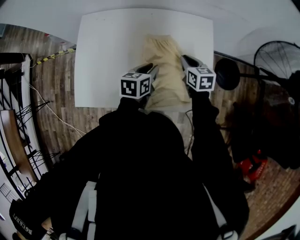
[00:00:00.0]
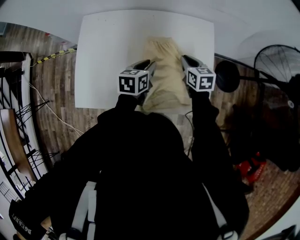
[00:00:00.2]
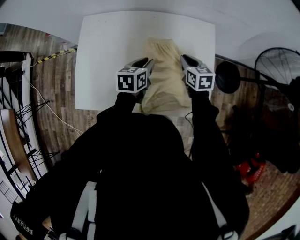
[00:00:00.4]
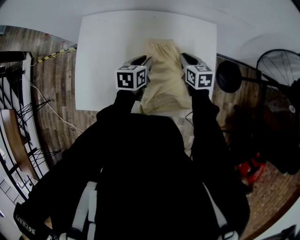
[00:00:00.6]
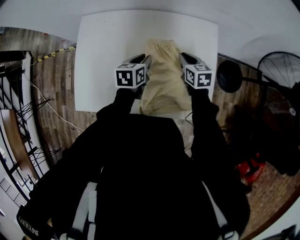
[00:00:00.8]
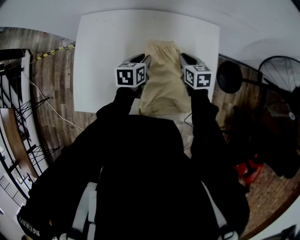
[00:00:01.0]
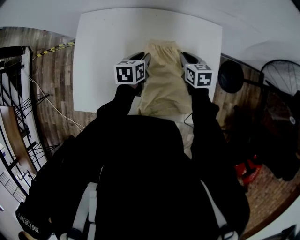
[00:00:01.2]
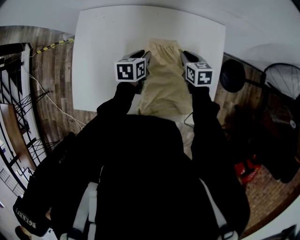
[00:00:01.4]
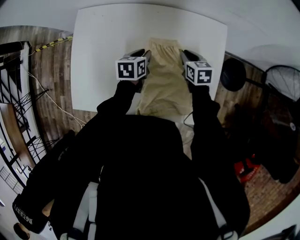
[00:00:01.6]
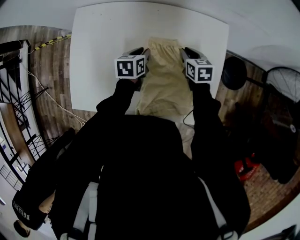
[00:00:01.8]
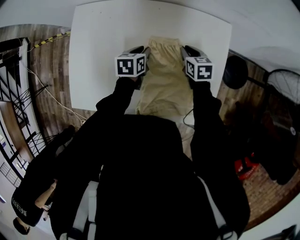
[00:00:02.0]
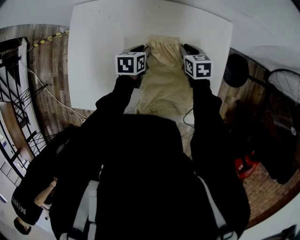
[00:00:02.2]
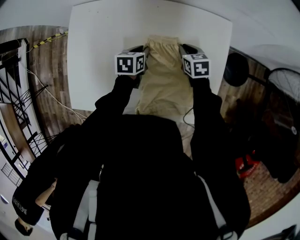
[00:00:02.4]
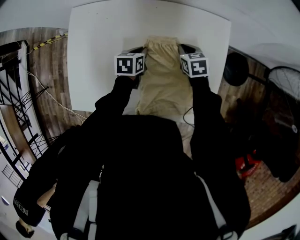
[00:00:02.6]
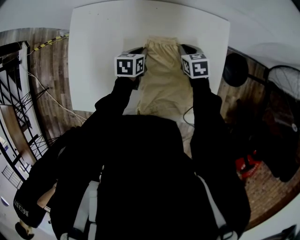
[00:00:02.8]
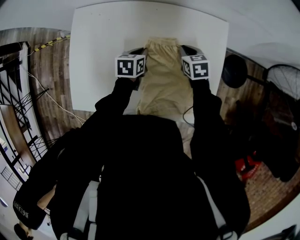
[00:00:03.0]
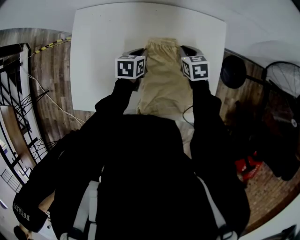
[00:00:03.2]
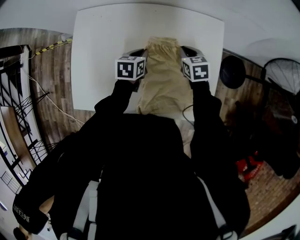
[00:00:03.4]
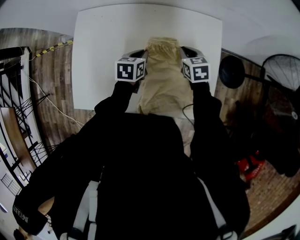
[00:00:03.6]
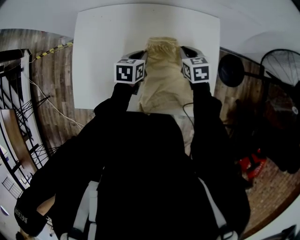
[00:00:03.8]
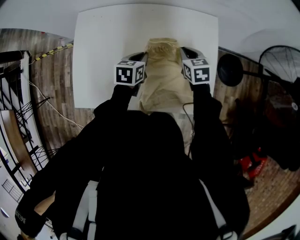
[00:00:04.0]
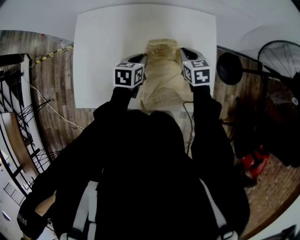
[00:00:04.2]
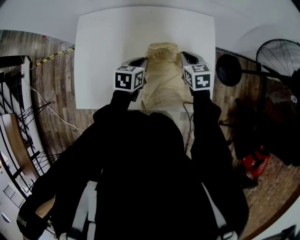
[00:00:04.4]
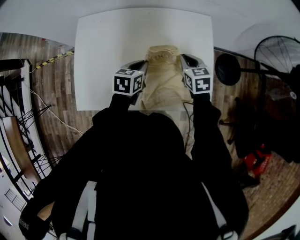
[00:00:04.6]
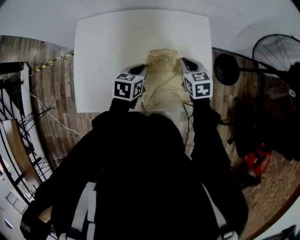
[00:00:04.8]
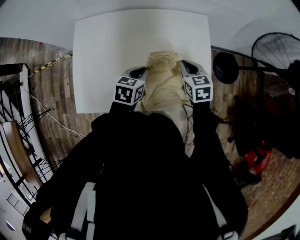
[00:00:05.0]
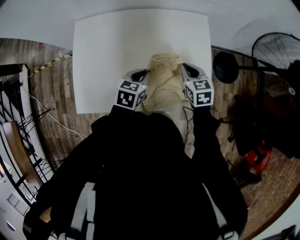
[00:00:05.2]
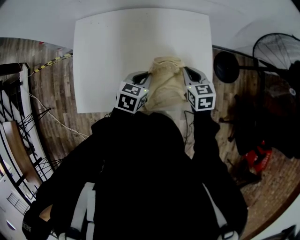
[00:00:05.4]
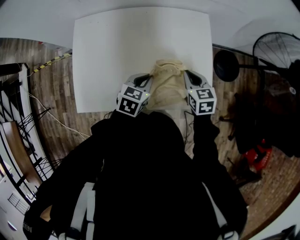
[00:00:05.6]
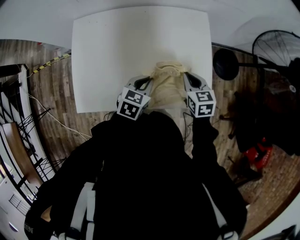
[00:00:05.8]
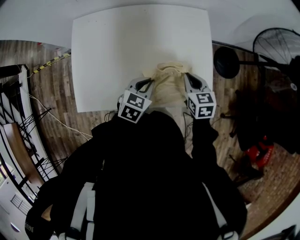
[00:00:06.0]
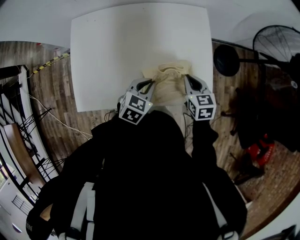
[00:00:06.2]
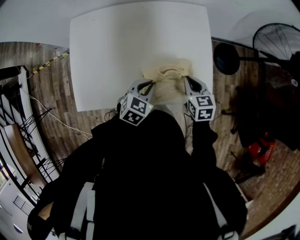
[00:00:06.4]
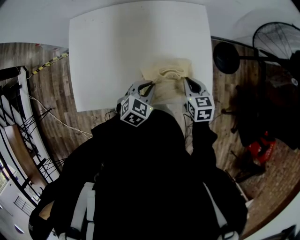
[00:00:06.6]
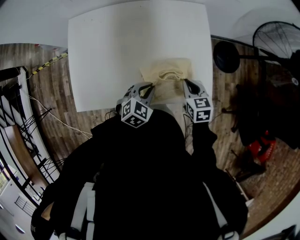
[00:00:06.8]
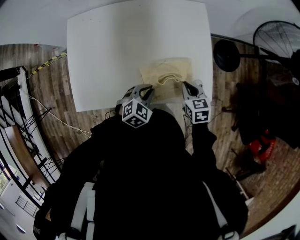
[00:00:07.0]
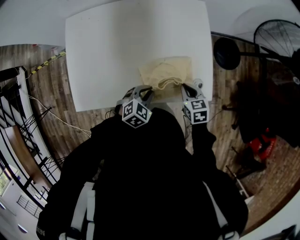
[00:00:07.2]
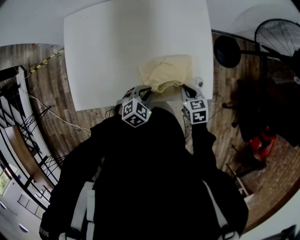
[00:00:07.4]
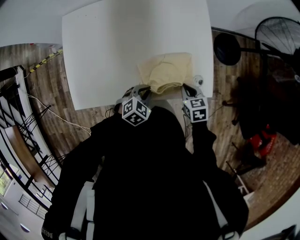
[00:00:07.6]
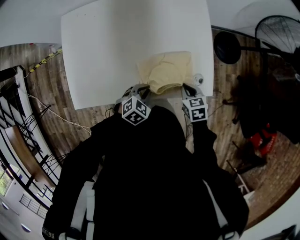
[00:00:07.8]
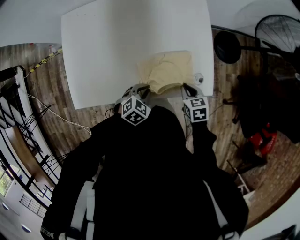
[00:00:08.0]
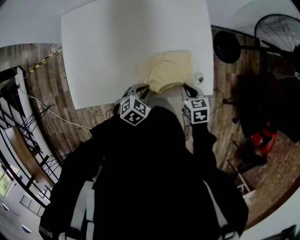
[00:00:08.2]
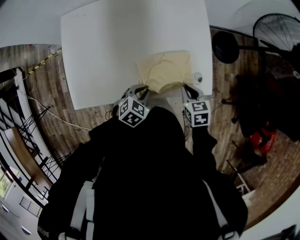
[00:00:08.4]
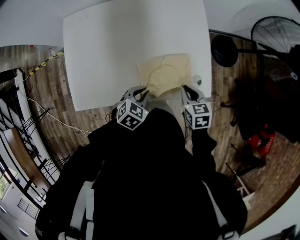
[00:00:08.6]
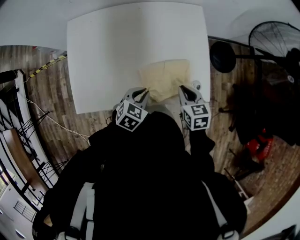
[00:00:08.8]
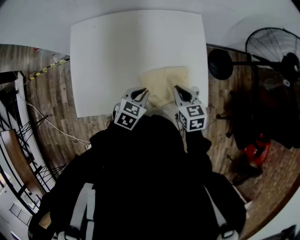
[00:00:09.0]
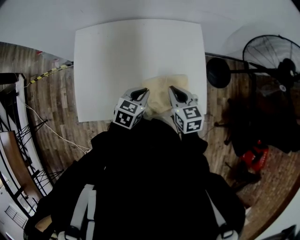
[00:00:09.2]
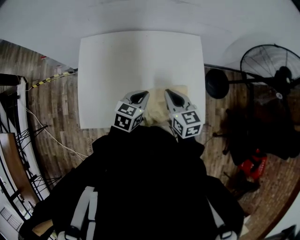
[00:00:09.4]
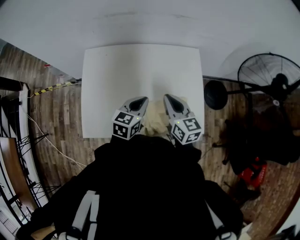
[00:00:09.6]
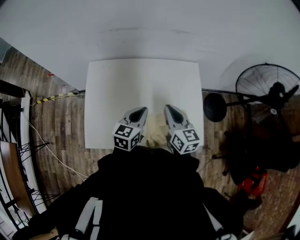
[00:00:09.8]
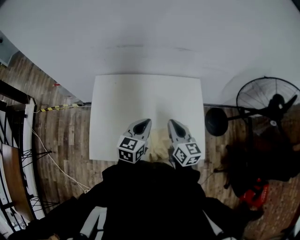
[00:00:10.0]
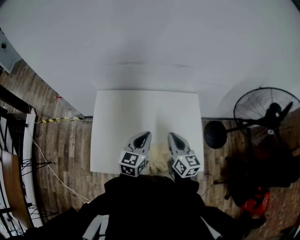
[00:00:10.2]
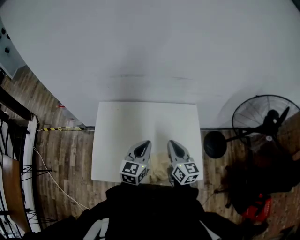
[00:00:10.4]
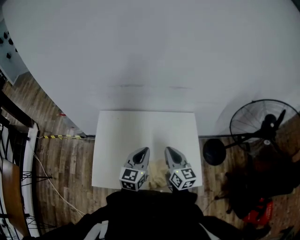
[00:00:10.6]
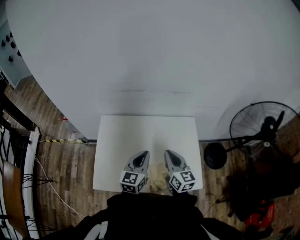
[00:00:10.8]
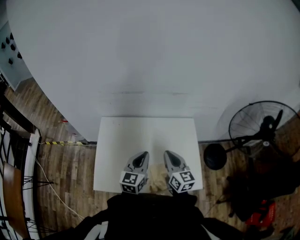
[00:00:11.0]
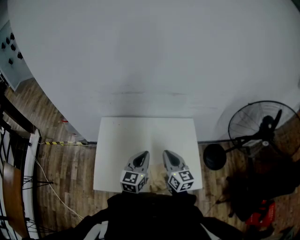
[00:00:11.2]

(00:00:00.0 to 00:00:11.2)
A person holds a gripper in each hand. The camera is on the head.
00:00:00.0 - 00:00:01.6: The left gripper heads forward, downward and to the left, covering about 15 cm; the right gripper goes about 10 cm forward and downward.
00:00:01.6 - 00:00:03.2: The grippers stay close to where they were, moving slightly.
00:00:03.2 - 00:00:04.8: Both grippers move backward and upward, approximately 15 cm.
00:00:04.8 - 00:00:06.4: The grippers both shift backward and to the right by about 10 cm. The left gripper swivels some 30 degrees.
00:00:06.4 - 00:00:08.0: The left gripper moves downward and backward, approximately 10 cm. Meanwhile the right gripper travels backward and downward by about 10 cm.
00:00:08.0 - 00:00:09.6: The right gripper moves upward, to the left and forward, roughly 30 cm, and angles its fingers upward, by roughly 40 degrees, while the left gripper goes approximately 25 cm upward, forward and to the left, and changes its angle by some 40 degrees.
00:00:09.6 - 00:00:11.2: The right gripper goes approximately 10 cm upward, while the left gripper moves upward, roughly 10 cm, and turns by roughly 20 degrees.

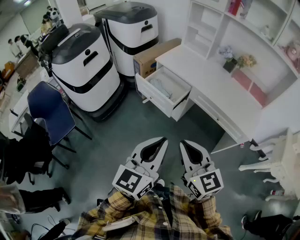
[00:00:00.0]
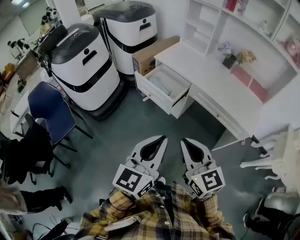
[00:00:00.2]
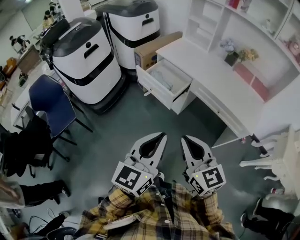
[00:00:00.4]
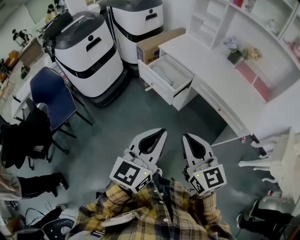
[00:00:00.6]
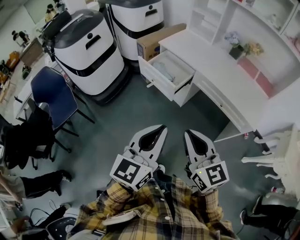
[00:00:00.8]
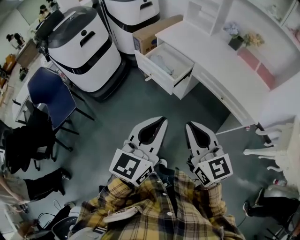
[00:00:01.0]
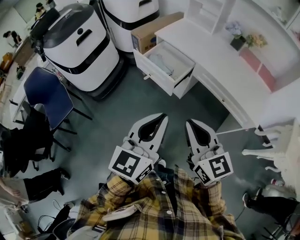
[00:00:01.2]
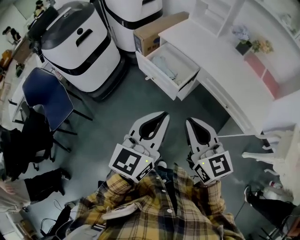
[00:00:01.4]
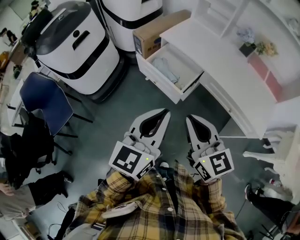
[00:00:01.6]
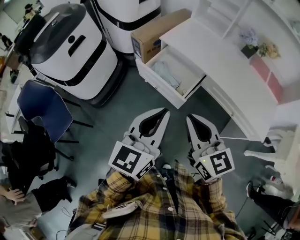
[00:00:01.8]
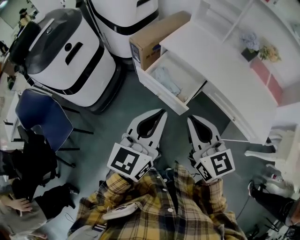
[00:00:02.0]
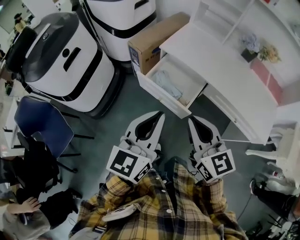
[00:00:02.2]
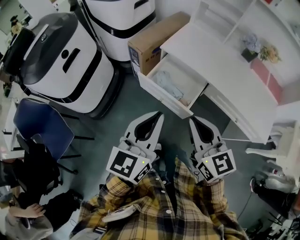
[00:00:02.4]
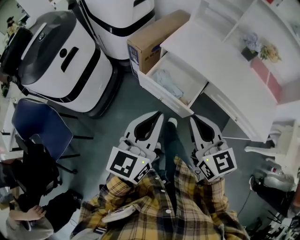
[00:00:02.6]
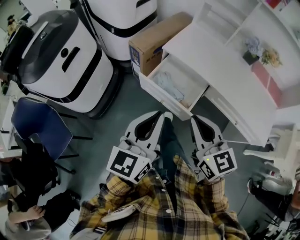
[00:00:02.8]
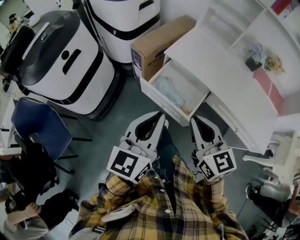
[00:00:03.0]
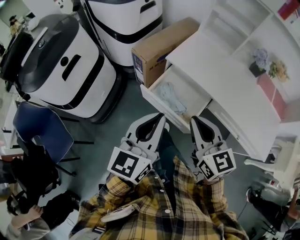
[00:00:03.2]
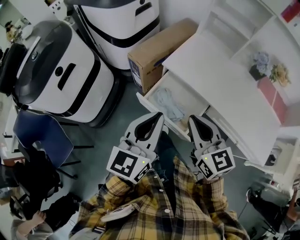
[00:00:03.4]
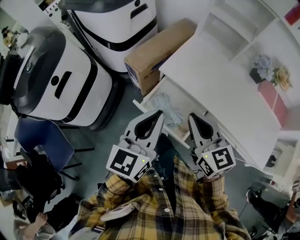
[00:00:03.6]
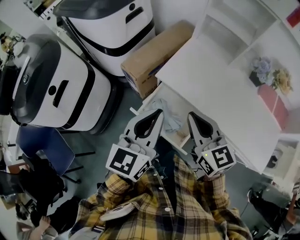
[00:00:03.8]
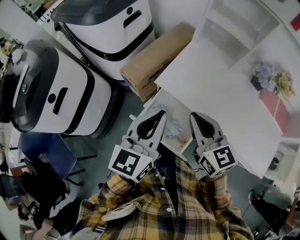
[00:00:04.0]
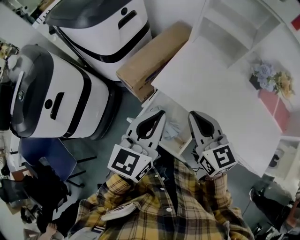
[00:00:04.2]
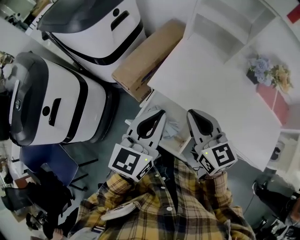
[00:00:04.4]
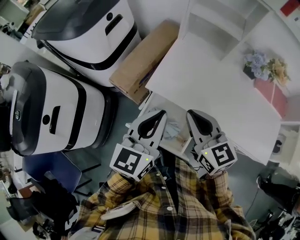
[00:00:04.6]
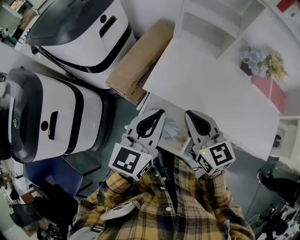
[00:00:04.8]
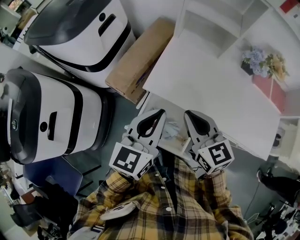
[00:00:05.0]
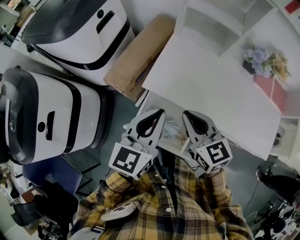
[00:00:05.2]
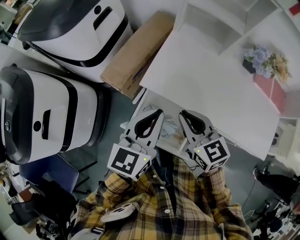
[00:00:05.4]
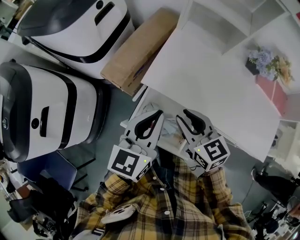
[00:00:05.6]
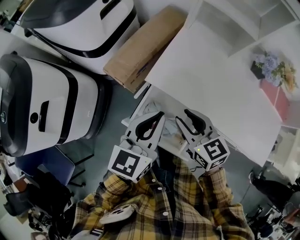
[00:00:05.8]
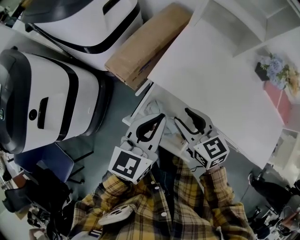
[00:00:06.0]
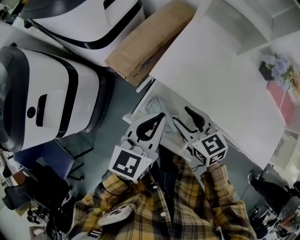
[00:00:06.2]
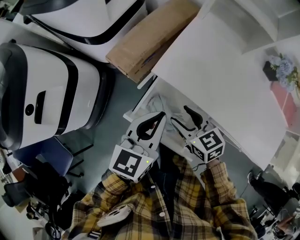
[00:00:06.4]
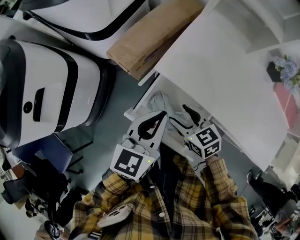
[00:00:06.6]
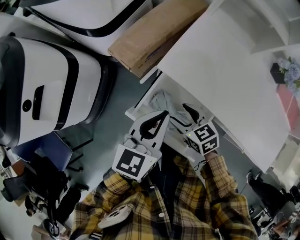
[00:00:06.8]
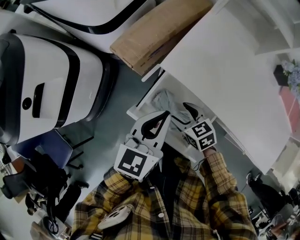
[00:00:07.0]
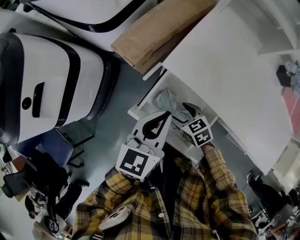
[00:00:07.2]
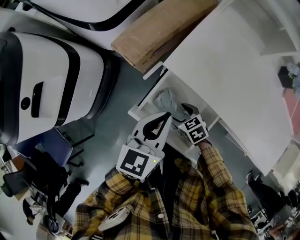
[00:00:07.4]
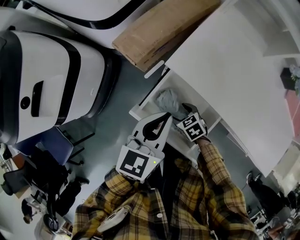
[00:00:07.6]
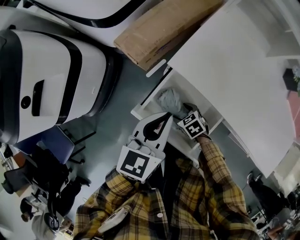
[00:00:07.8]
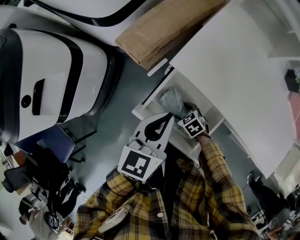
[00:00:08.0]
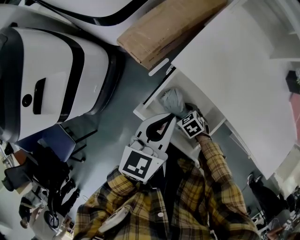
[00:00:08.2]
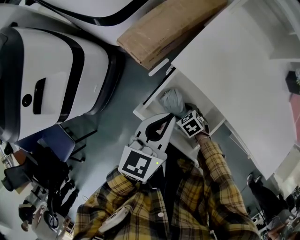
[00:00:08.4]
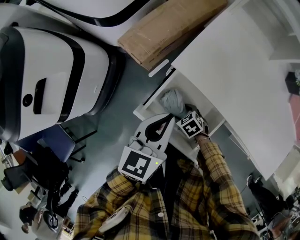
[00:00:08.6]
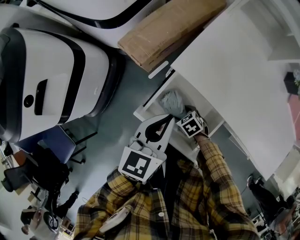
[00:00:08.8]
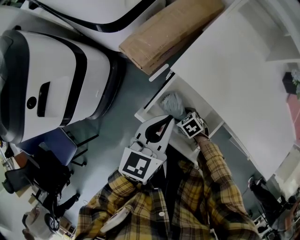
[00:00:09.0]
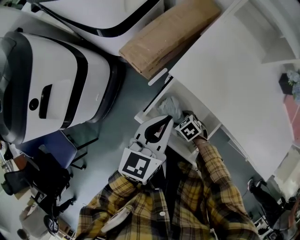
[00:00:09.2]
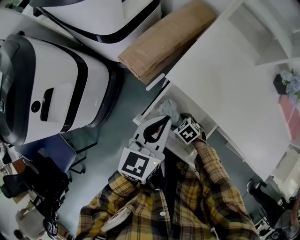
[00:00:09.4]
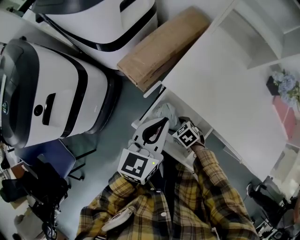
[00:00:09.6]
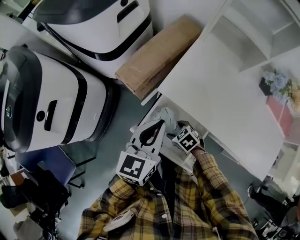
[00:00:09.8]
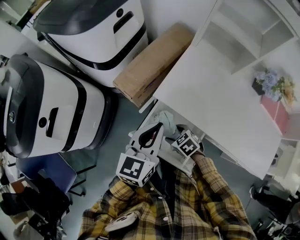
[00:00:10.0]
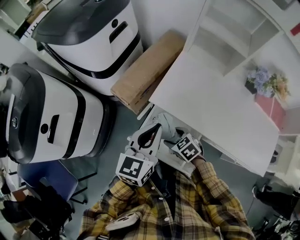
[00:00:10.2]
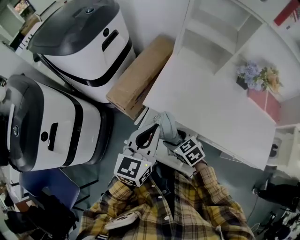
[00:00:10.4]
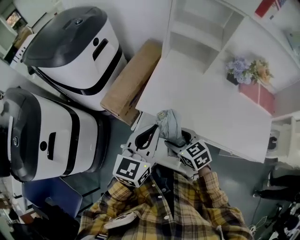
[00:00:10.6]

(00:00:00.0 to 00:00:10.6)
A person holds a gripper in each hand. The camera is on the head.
00:00:00.0 - 00:00:01.6: Both grippers travel together forward, about 15 cm.
00:00:01.6 - 00:00:03.0: The two grippers go approximately 20 cm forward and to the left.
00:00:03.0 - 00:00:04.6: Both grippers move forward, approximately 25 cm.
00:00:04.6 - 00:00:06.0: The left gripper goes approximately 10 cm downward, while the right gripper heads downward, covering about 10 cm, and opens its fingers.
00:00:06.0 - 00:00:07.6: The left gripper travels downward by about 10 cm, while the right gripper goes some 30 cm downward, swivels approximately 40 degrees, and opens.
00:00:07.6 - 00:00:09.0: There are only small adjustments of the grippers.
00:00:09.0 - 00:00:10.6: The right gripper is displaced upward by approximately 30 cm, and swivels some 40 degrees; the left gripper heads upward, covering approximately 15 cm, and swivels some 20 degrees.

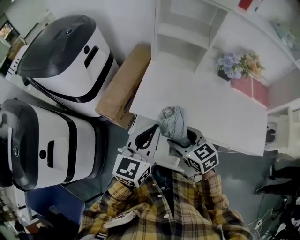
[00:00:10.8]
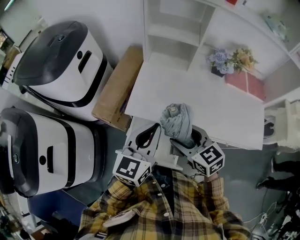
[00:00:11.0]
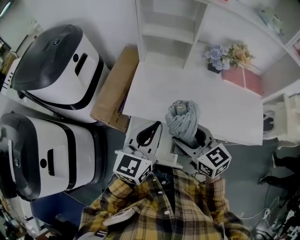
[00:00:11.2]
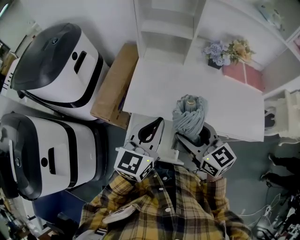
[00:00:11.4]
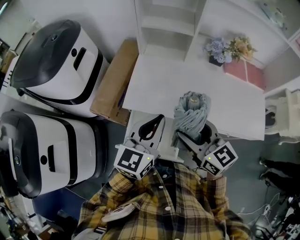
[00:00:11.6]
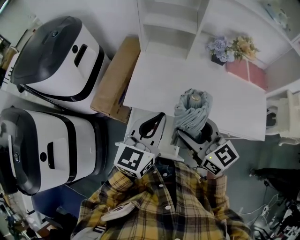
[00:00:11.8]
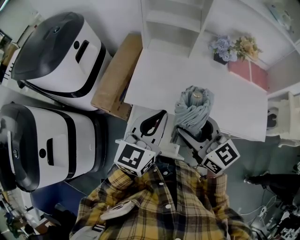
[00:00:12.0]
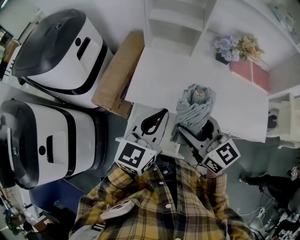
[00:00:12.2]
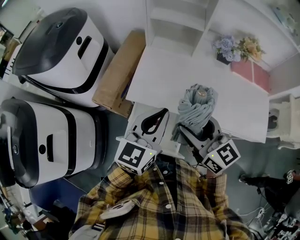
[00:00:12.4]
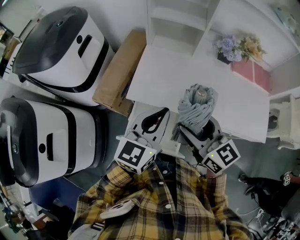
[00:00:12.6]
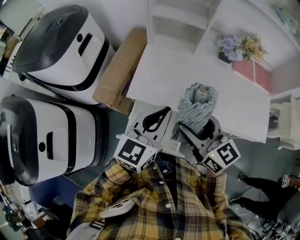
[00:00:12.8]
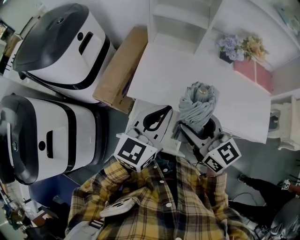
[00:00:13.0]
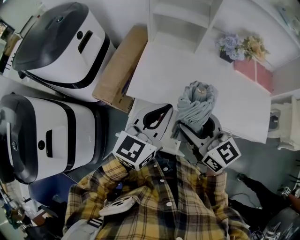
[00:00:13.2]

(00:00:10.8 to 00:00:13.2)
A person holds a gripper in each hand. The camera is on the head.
00:00:10.8 - 00:00:12.0: The right gripper shifts approximately 10 cm upward, and rotates approximately 30 degrees. The left gripper ends up some 5 cm from where it was.
00:00:12.0 - 00:00:13.2: The two grippers keep their place.
